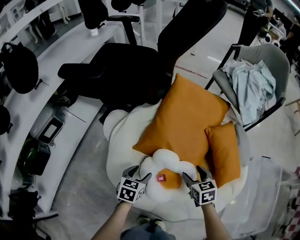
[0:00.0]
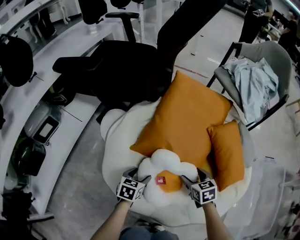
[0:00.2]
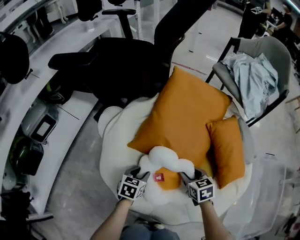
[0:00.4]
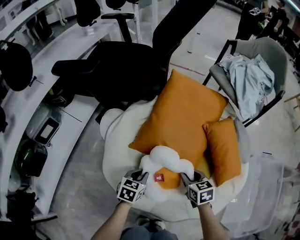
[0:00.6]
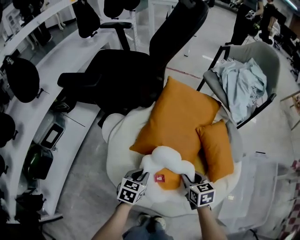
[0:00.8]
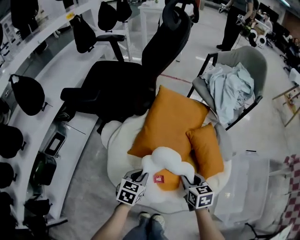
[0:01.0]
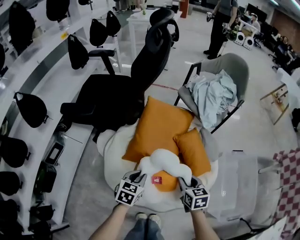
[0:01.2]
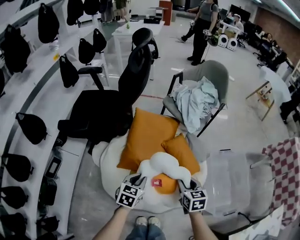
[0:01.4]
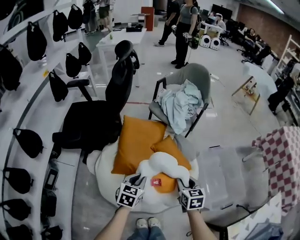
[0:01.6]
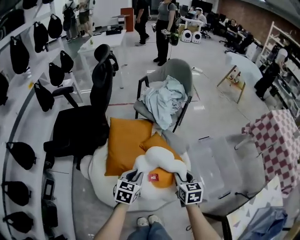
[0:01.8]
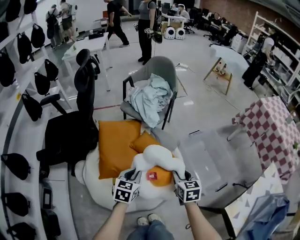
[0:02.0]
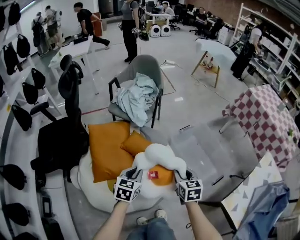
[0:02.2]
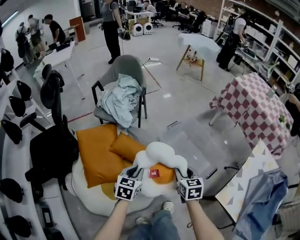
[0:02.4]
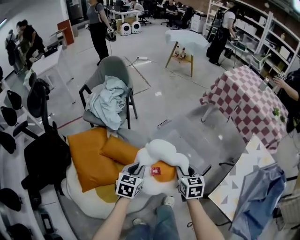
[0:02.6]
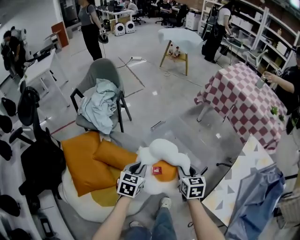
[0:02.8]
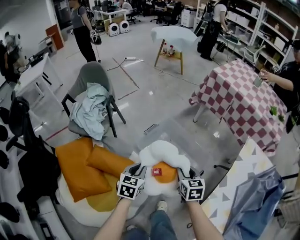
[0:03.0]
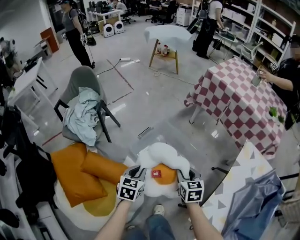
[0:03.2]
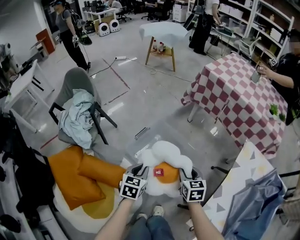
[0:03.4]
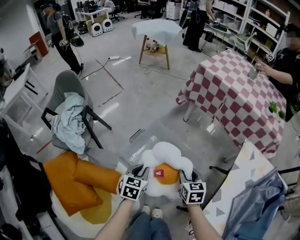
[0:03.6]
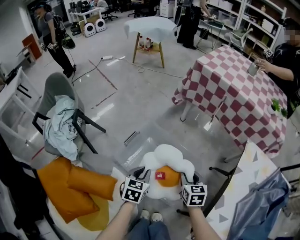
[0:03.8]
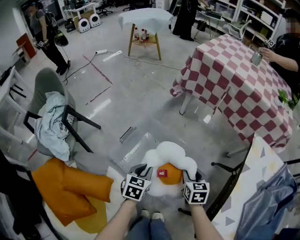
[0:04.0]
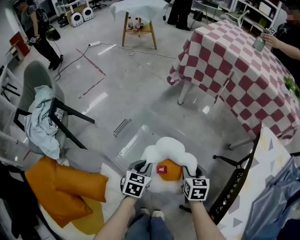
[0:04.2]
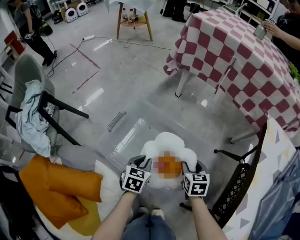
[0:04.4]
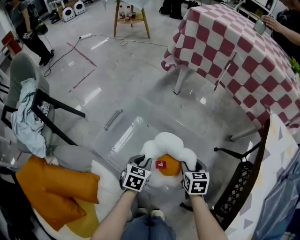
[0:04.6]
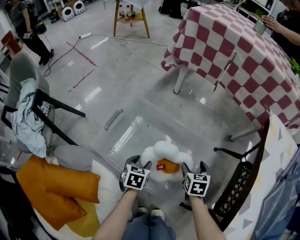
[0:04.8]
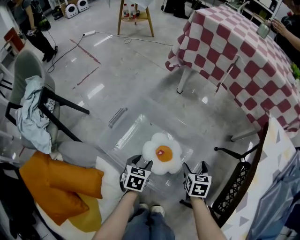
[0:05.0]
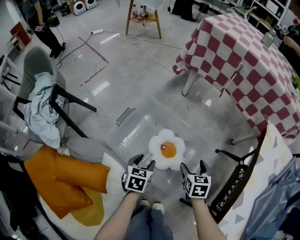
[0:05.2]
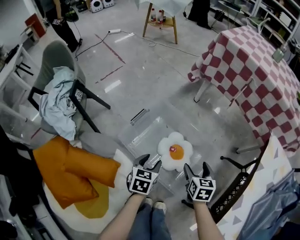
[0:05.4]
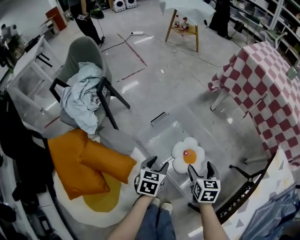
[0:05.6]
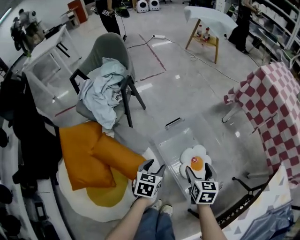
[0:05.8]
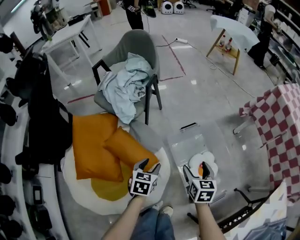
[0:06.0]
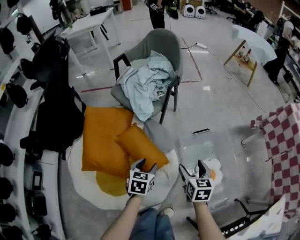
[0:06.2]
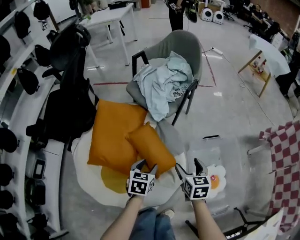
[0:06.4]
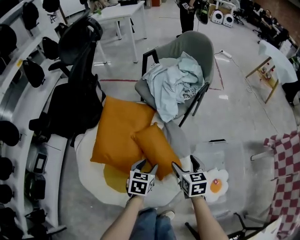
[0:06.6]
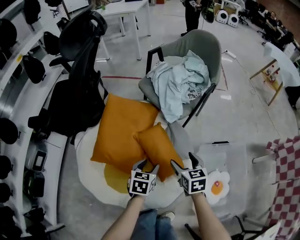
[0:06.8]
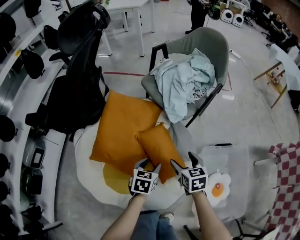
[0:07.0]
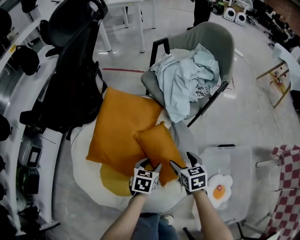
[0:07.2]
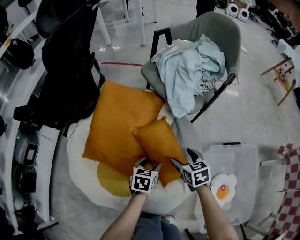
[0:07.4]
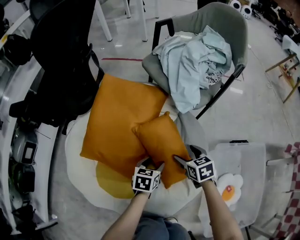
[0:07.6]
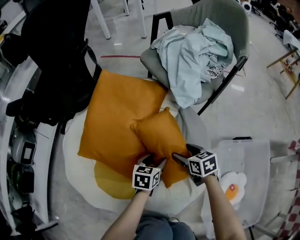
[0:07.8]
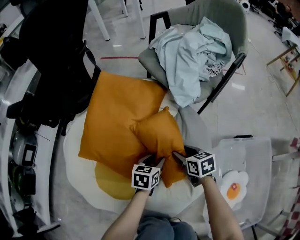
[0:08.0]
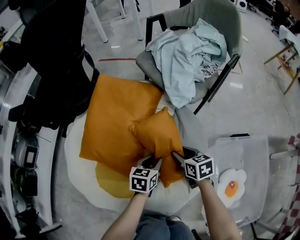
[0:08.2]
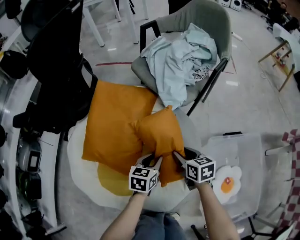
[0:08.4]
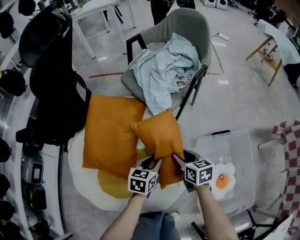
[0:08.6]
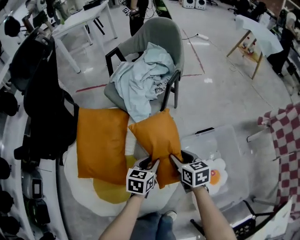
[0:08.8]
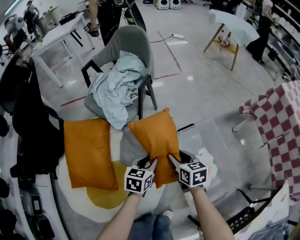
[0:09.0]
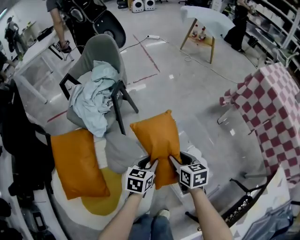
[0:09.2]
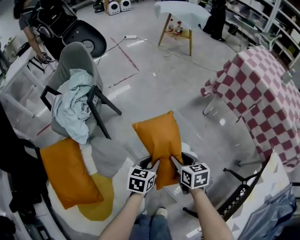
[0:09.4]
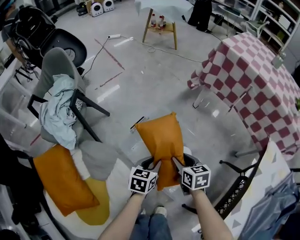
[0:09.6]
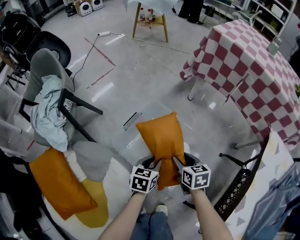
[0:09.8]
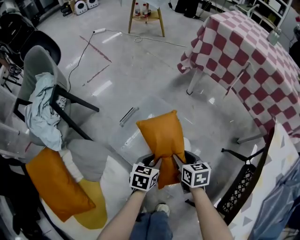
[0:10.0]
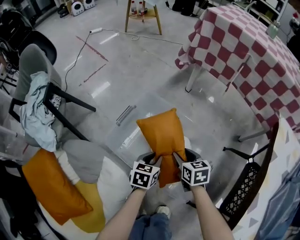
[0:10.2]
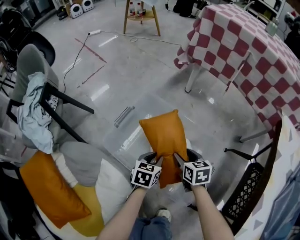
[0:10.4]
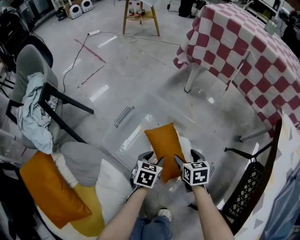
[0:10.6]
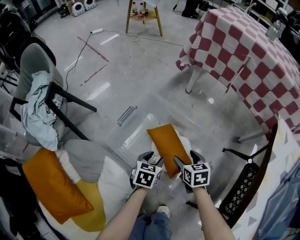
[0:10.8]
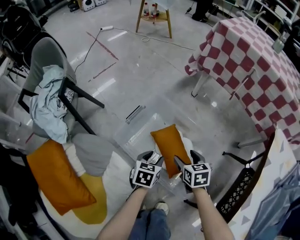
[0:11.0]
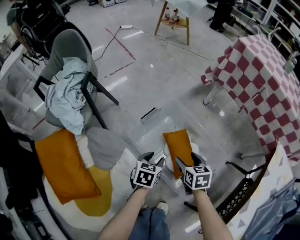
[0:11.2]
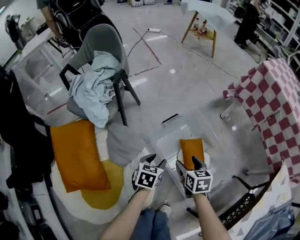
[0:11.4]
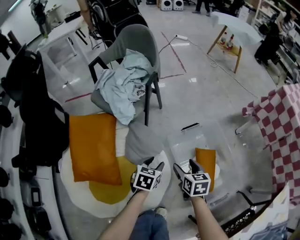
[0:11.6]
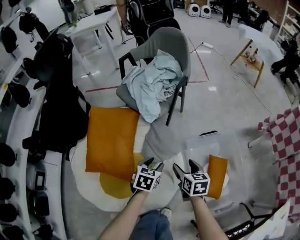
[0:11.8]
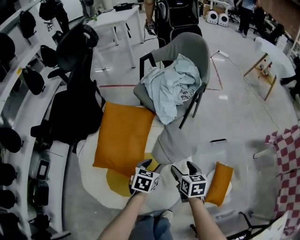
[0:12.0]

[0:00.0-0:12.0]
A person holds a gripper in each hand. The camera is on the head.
0.0 to 1.6 s: The grippers both shift upward by about 35 cm. The left gripper turns by about 30 degrees, and closes its fingers. The right gripper turns by roughly 30 degrees, and closes.
1.6 to 3.0 s: The two grippers travel together, about 40 cm. The left gripper changes its angle by approximately 30 degrees; the right gripper changes its angle by roughly 40 degrees.
3.0 to 4.4 s: Both grippers move downward, forward and to the right, about 40 cm. The right gripper swivels some 20 degrees.
4.4 to 6.0 s: The right gripper moves some 35 cm, rotates about 40 degrees, and opens. Meanwhile the left gripper moves approximately 35 cm, rotates some 40 degrees, and opens up.
6.0 to 7.6 s: The left gripper goes approximately 25 cm downward, and turns by some 30 degrees. The right gripper changes place by some 40 cm, and rotates roughly 50 degrees.
7.6 to 9.0 s: The left gripper shifts by roughly 30 cm, rotates approximately 30 degrees, and closes up. The right gripper ends up some 30 cm from where it was, swivels approximately 40 degrees, and closes.
9.0 to 10.4 s: The right gripper changes place by about 40 cm, and changes its angle by some 40 degrees. Meanwhile the left gripper changes place by some 40 cm, and rotates approximately 40 degrees.
10.4 to 12.0 s: The pair of grippers is taken some 50 cm. The right gripper turns by approximately 50 degrees. Meanwhile the left gripper turns by about 50 degrees.

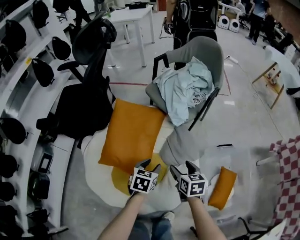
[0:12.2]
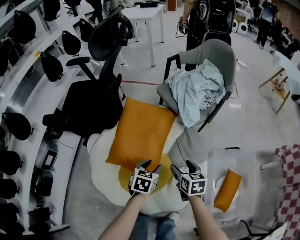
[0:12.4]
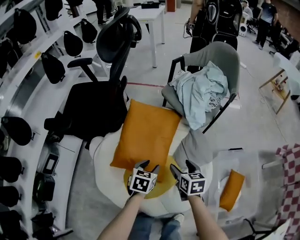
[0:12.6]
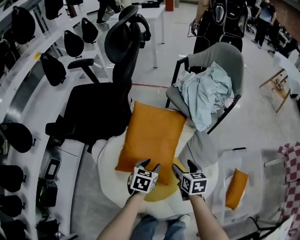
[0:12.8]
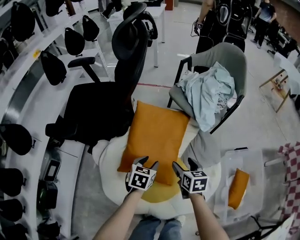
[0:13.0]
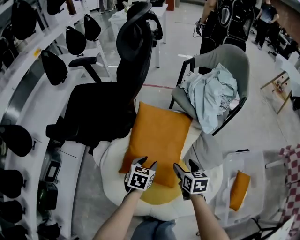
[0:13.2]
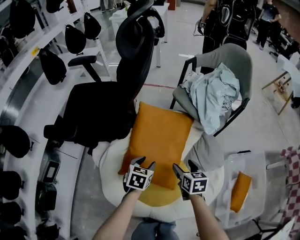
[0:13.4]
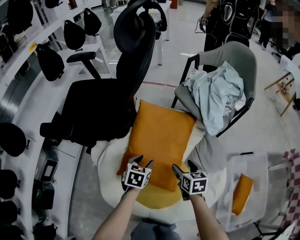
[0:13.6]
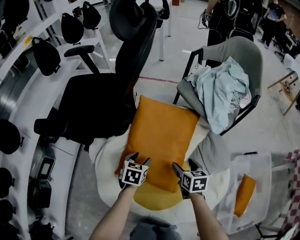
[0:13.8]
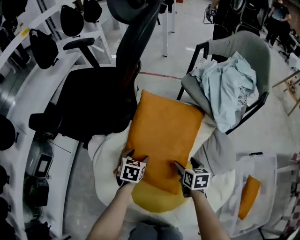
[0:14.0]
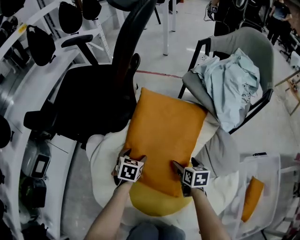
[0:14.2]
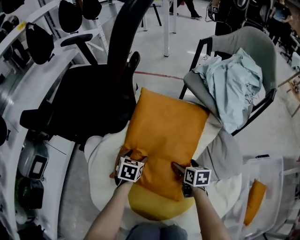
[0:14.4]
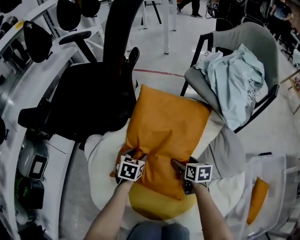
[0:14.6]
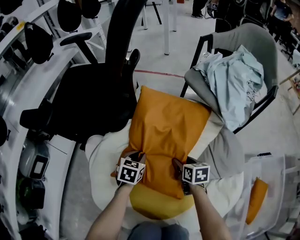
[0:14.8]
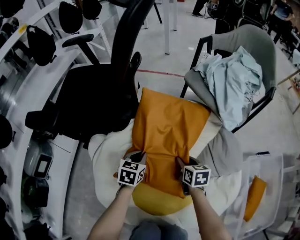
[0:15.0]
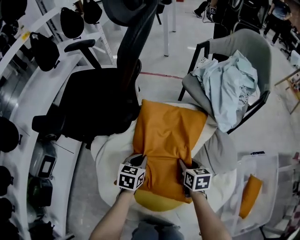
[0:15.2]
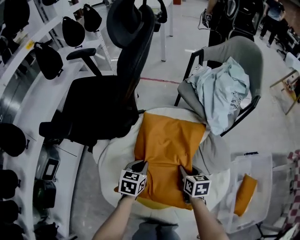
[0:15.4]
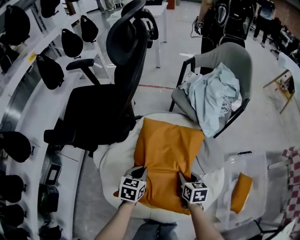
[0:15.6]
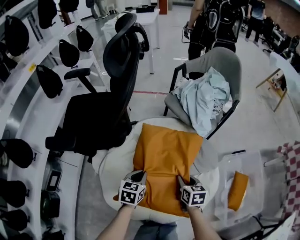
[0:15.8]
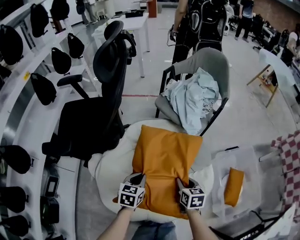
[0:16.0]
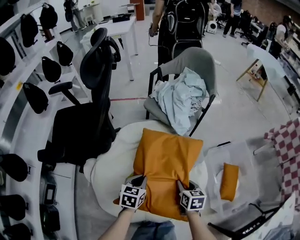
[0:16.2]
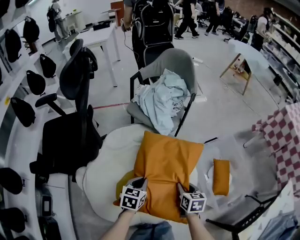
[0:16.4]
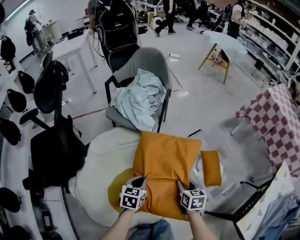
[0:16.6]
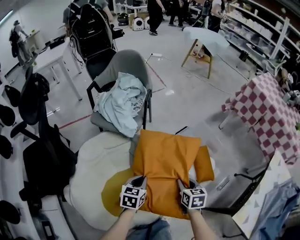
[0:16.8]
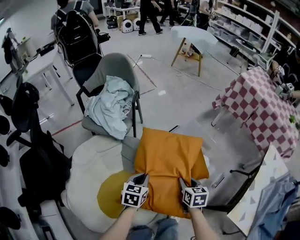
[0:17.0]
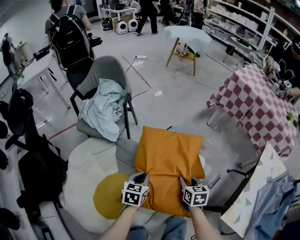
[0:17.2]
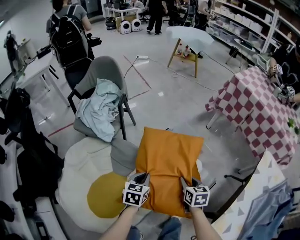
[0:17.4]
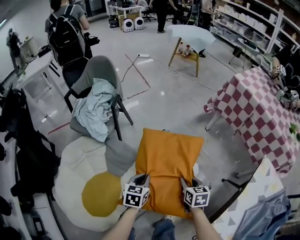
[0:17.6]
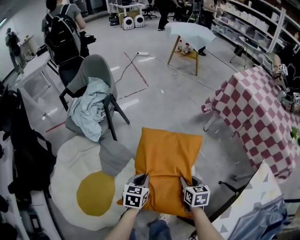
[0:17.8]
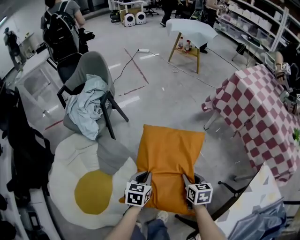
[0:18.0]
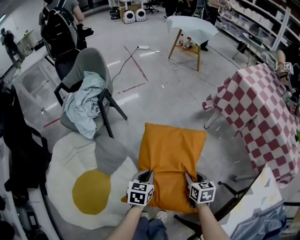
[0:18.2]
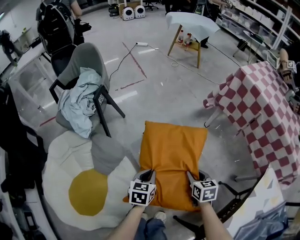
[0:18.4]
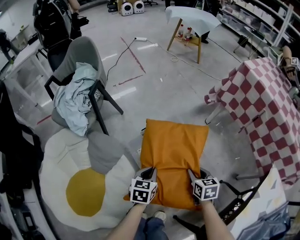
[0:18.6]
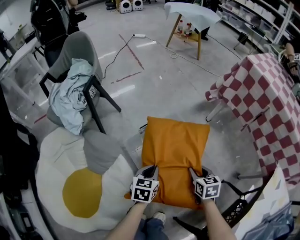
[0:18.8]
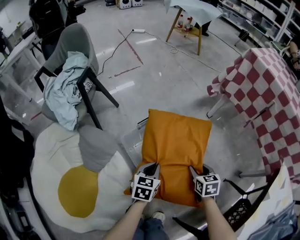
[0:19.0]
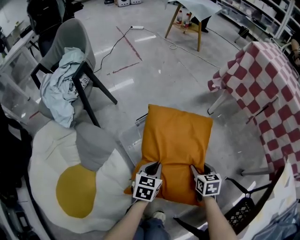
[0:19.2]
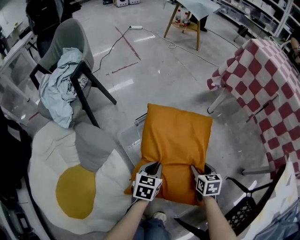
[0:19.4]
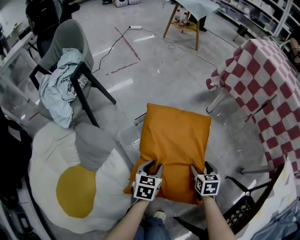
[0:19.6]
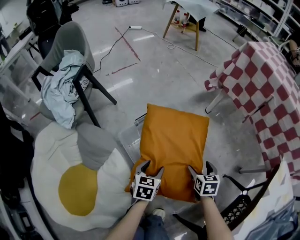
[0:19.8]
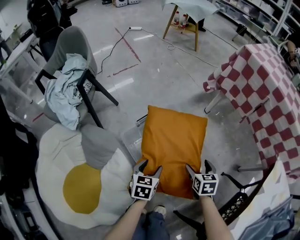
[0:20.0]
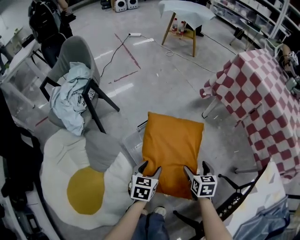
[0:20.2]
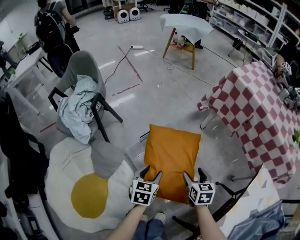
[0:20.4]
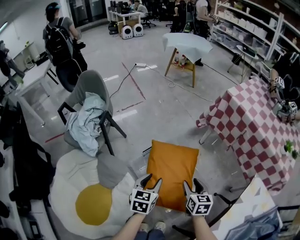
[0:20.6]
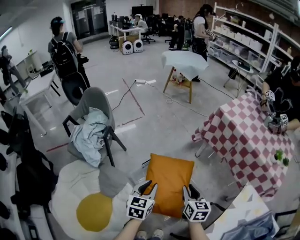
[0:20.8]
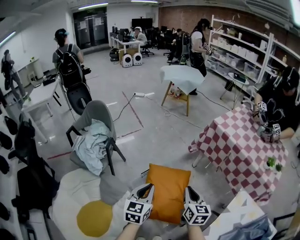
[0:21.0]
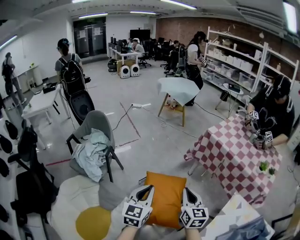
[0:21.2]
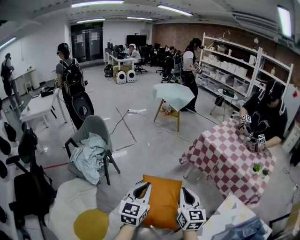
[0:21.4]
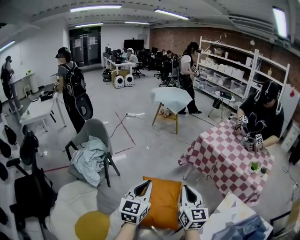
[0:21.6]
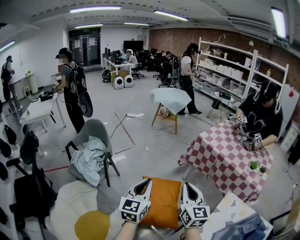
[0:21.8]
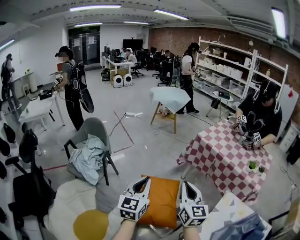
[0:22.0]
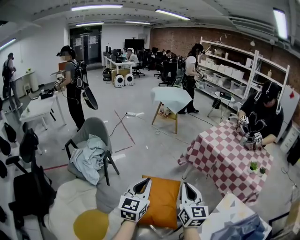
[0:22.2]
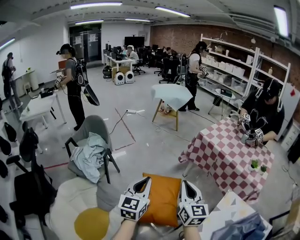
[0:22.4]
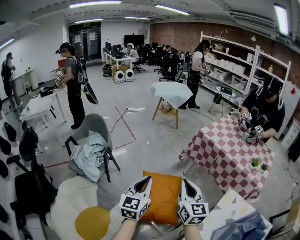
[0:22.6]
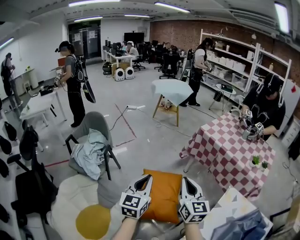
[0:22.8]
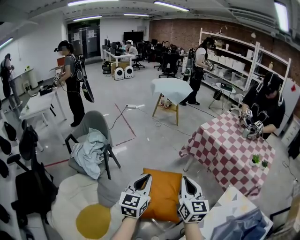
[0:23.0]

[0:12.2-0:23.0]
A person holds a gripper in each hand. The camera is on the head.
12.2 to 13.8 s: Both grippers travel together to the left, downward and forward, approximately 30 cm.
13.8 to 15.2 s: The left gripper goes downward and returns, some 15 cm each way, and closes its fingers. Meanwhile the right gripper reaches some 15 cm downward, then returns, and closes.
15.2 to 16.8 s: The right gripper changes place by roughly 40 cm, and swivels some 40 degrees, while the left gripper shifts by some 40 cm, and changes its angle by some 40 degrees.
16.8 to 18.4 s: The two grippers go approximately 35 cm to the right and forward.
18.4 to 20.0 s: The right gripper moves downward and to the right, some 10 cm, and opens up, while the left gripper travels downward by some 10 cm, and opens its fingers.
20.0 to 21.4 s: The two grippers go approximately 50 cm upward. The right gripper tilts its fingers about 40 degrees upward, and closes. Meanwhile the left gripper tips its fingers upward by roughly 40 degrees, and closes its fingers.
21.4 to 23.0 s: The grippers make only small movements.

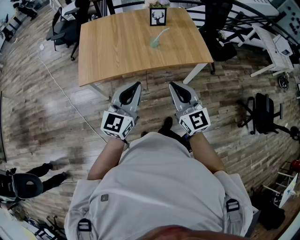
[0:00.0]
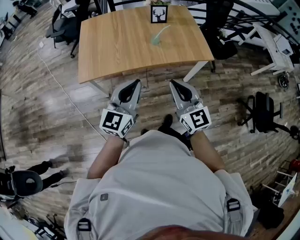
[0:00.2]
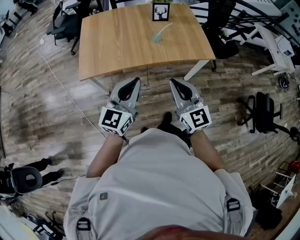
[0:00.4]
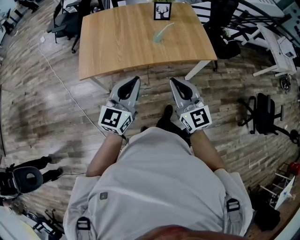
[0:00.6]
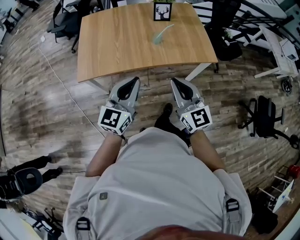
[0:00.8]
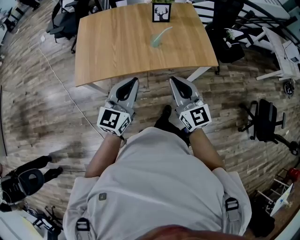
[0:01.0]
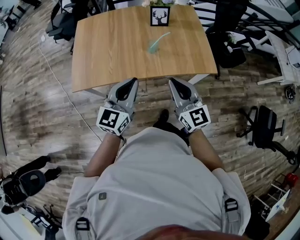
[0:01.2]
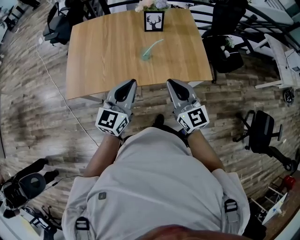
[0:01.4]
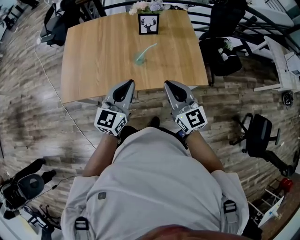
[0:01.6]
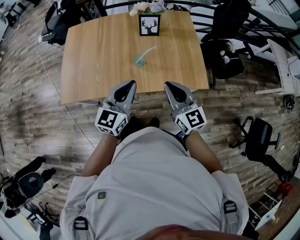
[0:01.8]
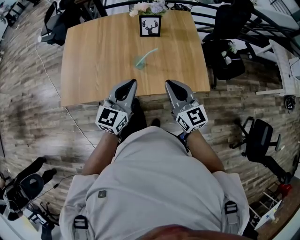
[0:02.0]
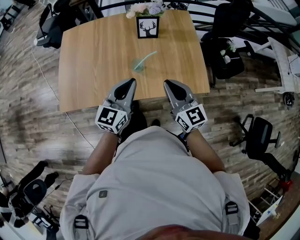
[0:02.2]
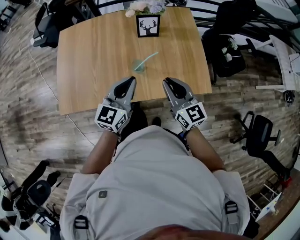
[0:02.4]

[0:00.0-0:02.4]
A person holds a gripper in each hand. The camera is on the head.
0.0 to 1.2 s: Both grippers travel together forward and to the right, some 15 cm.
1.2 to 2.4 s: Both grippers move forward, some 25 cm.
